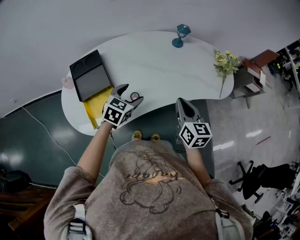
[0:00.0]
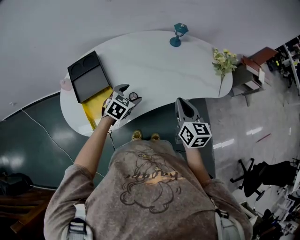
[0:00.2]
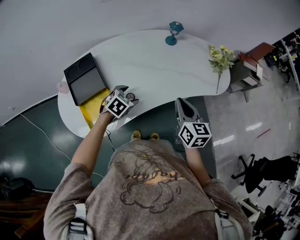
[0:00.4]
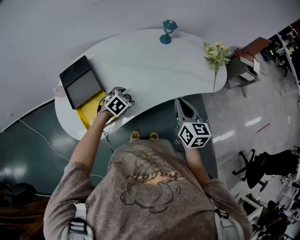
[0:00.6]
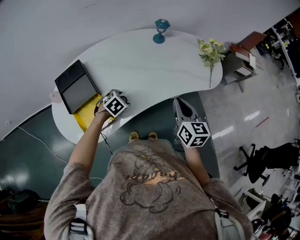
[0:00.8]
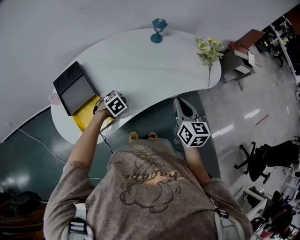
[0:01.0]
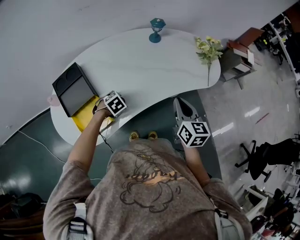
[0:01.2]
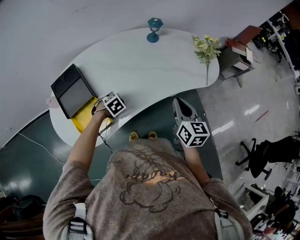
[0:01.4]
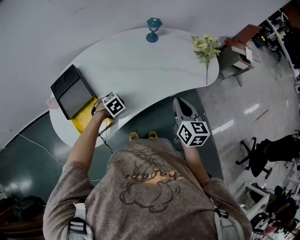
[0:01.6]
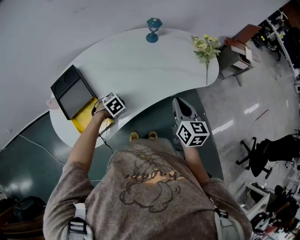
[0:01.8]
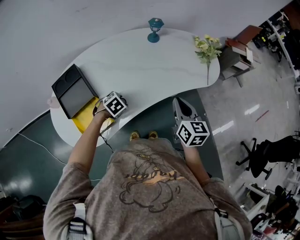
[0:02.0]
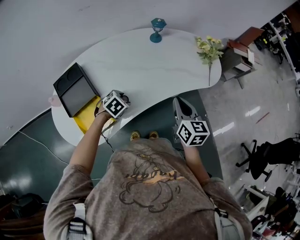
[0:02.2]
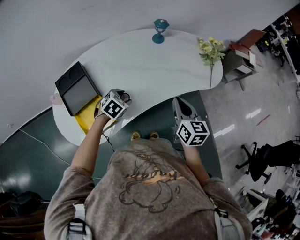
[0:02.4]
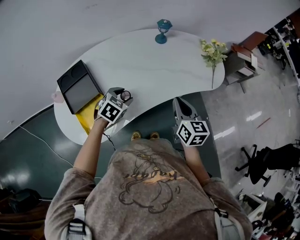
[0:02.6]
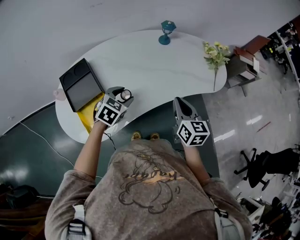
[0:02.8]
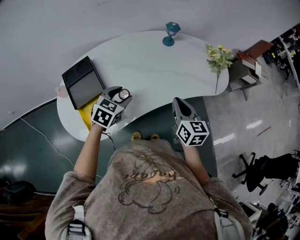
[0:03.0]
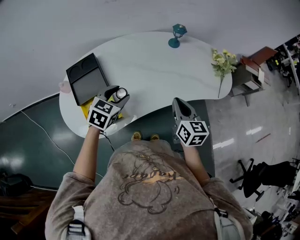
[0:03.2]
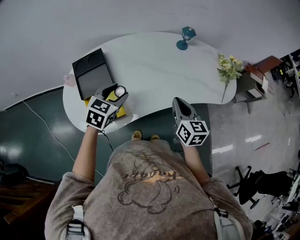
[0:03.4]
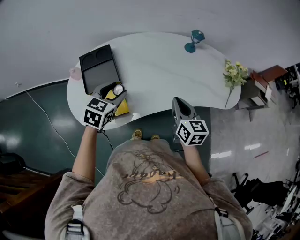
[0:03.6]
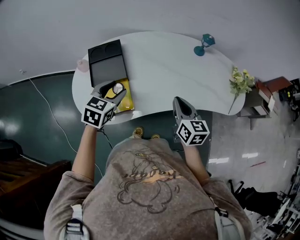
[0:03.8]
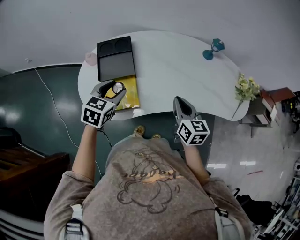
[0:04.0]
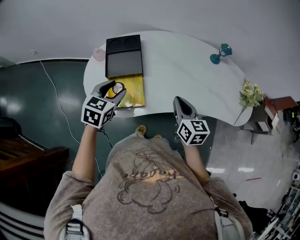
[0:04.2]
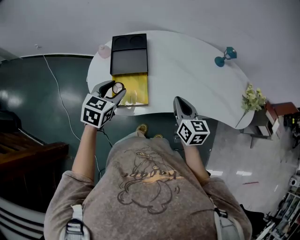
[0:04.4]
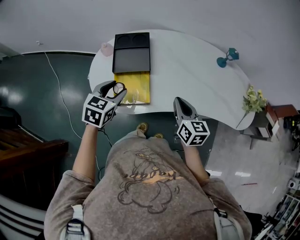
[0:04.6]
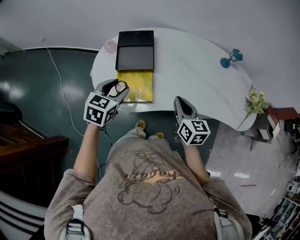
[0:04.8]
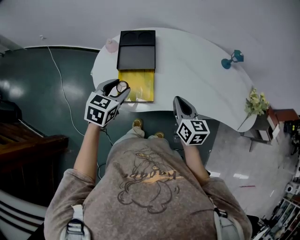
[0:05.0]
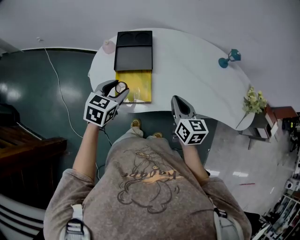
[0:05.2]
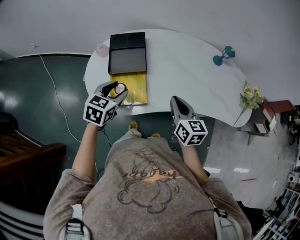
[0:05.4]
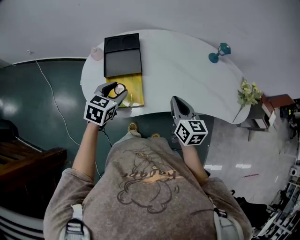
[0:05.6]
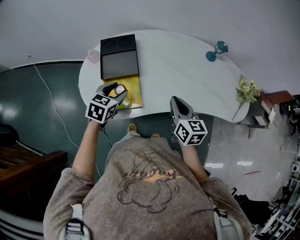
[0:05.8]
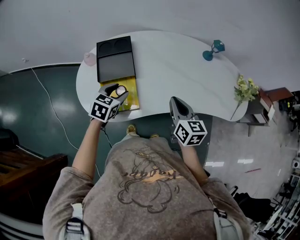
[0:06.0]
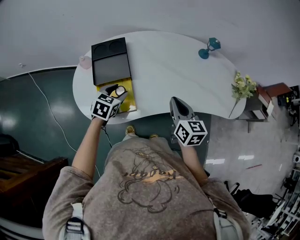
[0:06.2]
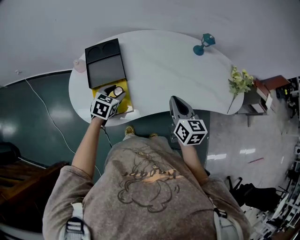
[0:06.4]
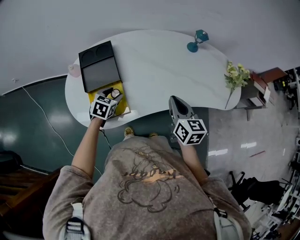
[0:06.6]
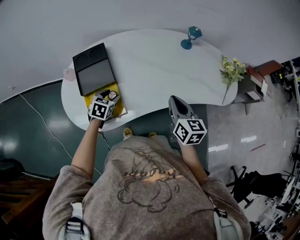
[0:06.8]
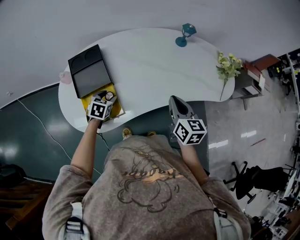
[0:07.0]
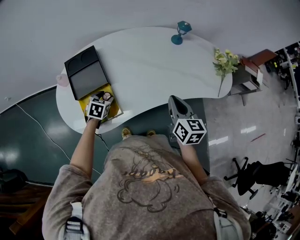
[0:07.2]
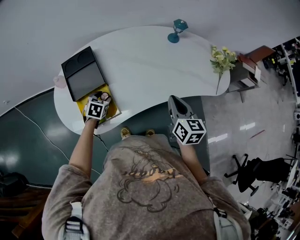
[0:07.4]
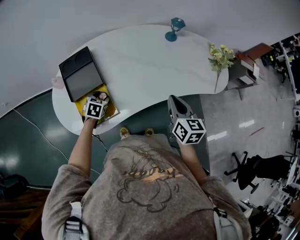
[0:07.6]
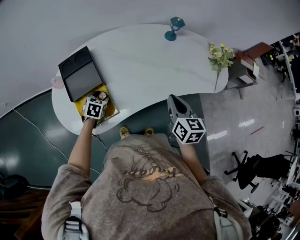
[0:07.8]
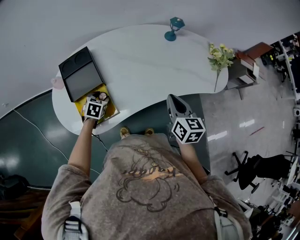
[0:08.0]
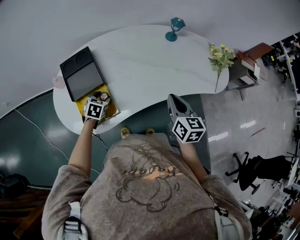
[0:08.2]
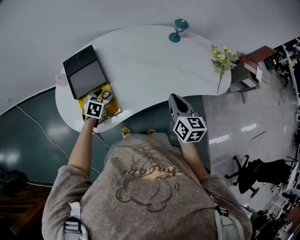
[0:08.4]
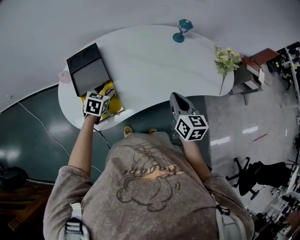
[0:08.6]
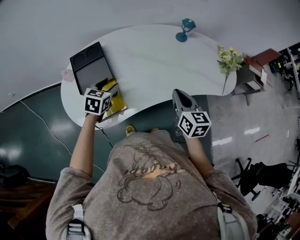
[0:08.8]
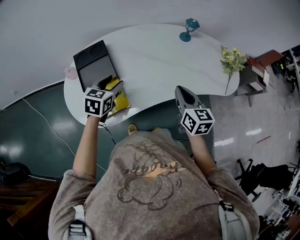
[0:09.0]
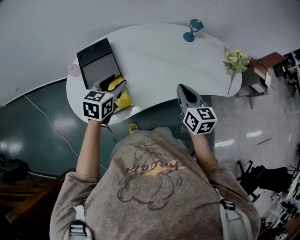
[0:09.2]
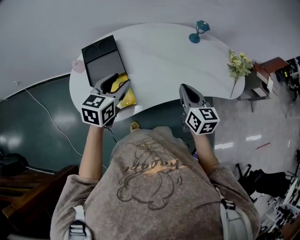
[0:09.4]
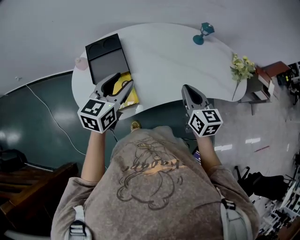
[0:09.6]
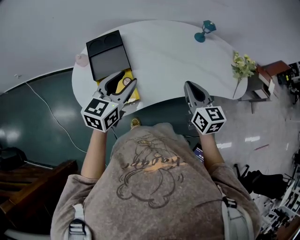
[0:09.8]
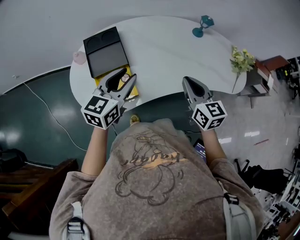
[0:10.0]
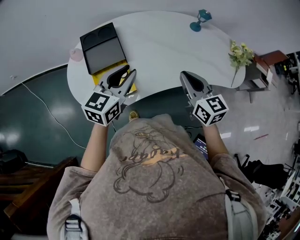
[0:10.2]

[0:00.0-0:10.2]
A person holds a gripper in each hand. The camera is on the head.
0:00.0 to 0:01.4: The right gripper moves roughly 5 cm. The left gripper travels downward by roughly 15 cm, and tips its fingers downward by roughly 40 degrees.
0:01.4 to 0:03.0: The left gripper goes approximately 15 cm upward, and tilts its fingers approximately 30 degrees upward; the right gripper changes place by about 5 cm.
0:03.0 to 0:04.4: The left gripper shifts by about 25 cm, and turns by some 30 degrees, while the right gripper changes place by about 15 cm, and changes its angle by some 30 degrees.
0:04.4 to 0:05.8: The left gripper shifts by about 5 cm.
0:05.8 to 0:07.2: The left gripper moves downward, approximately 15 cm. The right gripper heads to the right, covering about 10 cm.
0:07.2 to 0:08.8: The left gripper heads upward, covering some 10 cm.
0:08.8 to 0:10.2: The right gripper goes roughly 5 cm to the left; the left gripper is displaced upward and backward by some 15 cm, and swivels some 30 degrees.

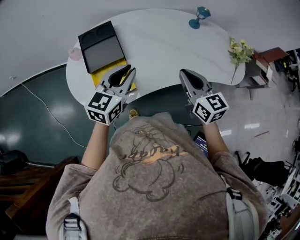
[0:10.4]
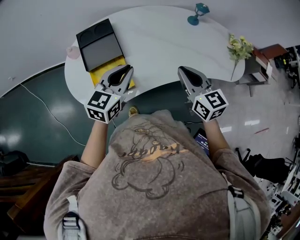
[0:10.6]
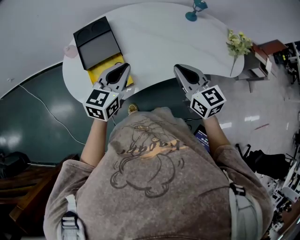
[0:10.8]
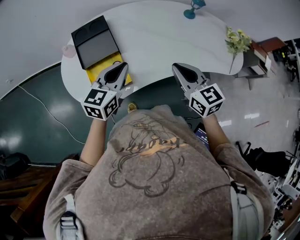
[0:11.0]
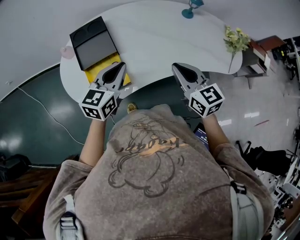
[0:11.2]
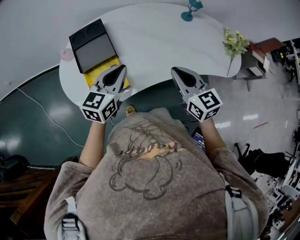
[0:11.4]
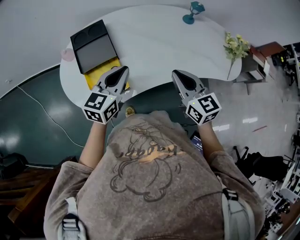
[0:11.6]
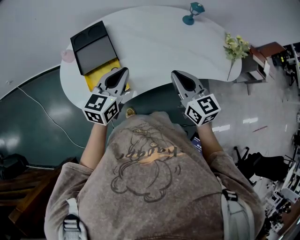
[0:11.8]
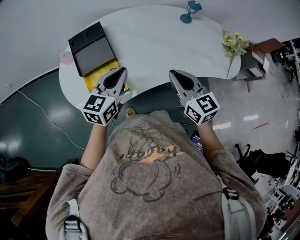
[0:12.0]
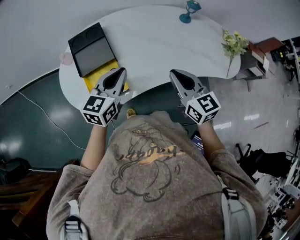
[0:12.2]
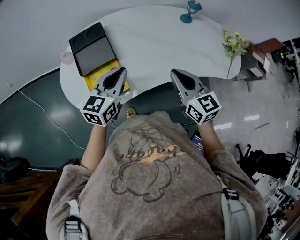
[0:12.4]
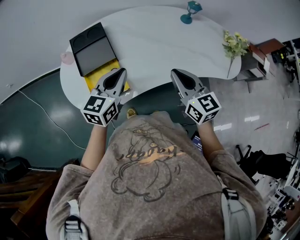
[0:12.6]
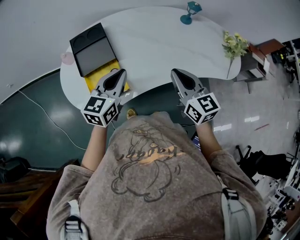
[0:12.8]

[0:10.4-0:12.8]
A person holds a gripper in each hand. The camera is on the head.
0:10.4 to 0:11.6: There are only small adjustments of the grippers.
0:11.6 to 0:12.8: The two grippers keep their place.

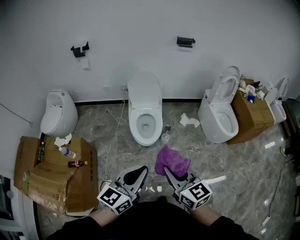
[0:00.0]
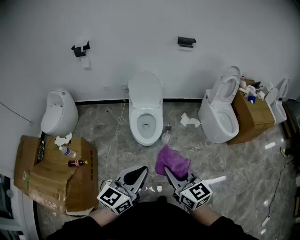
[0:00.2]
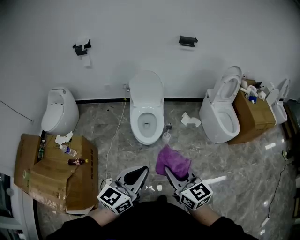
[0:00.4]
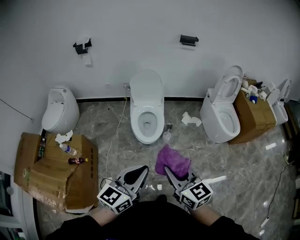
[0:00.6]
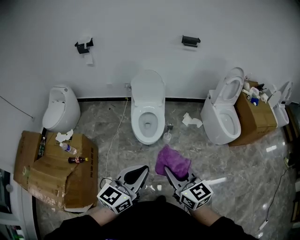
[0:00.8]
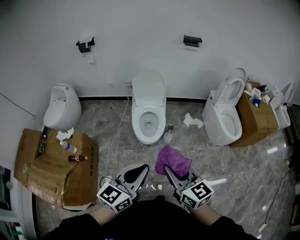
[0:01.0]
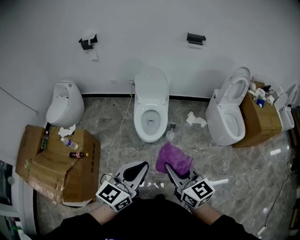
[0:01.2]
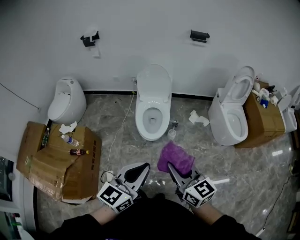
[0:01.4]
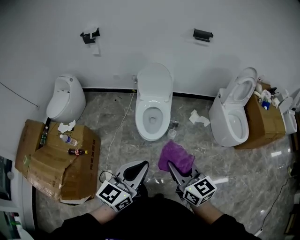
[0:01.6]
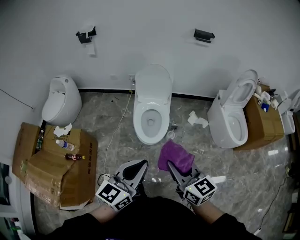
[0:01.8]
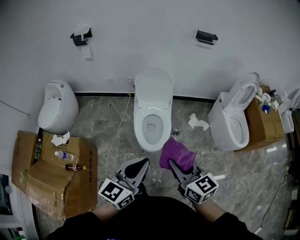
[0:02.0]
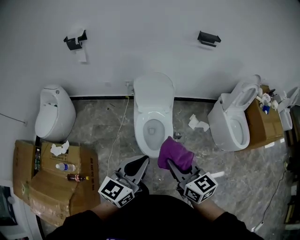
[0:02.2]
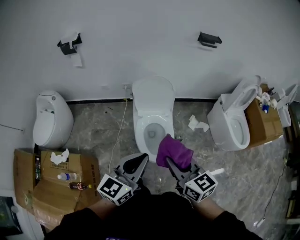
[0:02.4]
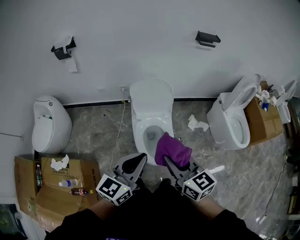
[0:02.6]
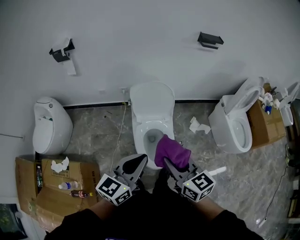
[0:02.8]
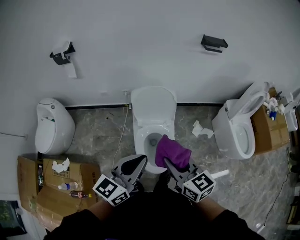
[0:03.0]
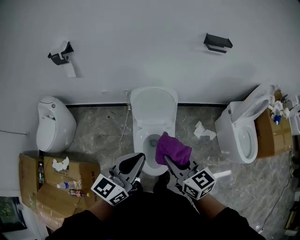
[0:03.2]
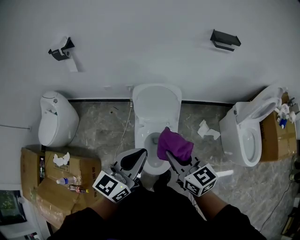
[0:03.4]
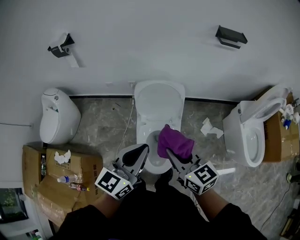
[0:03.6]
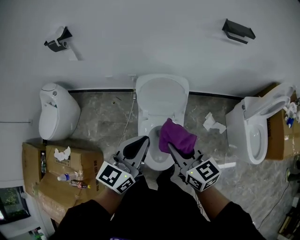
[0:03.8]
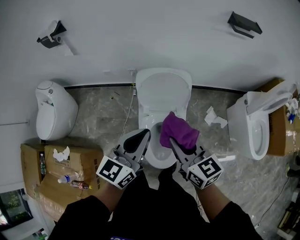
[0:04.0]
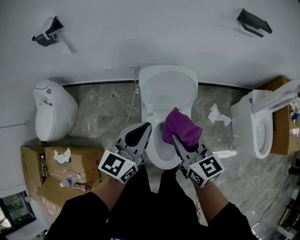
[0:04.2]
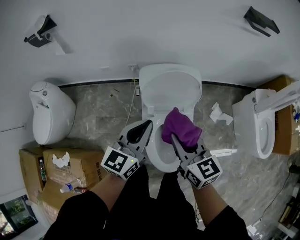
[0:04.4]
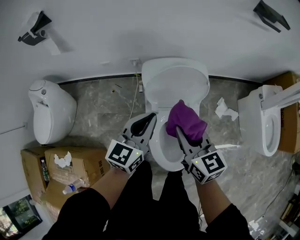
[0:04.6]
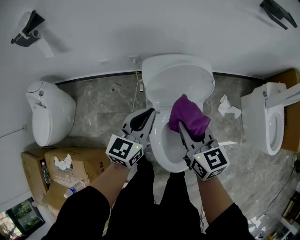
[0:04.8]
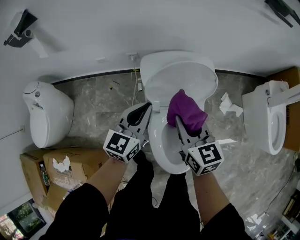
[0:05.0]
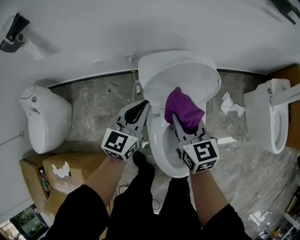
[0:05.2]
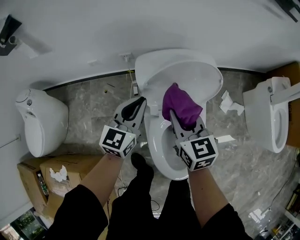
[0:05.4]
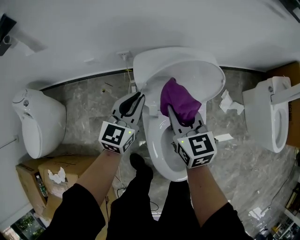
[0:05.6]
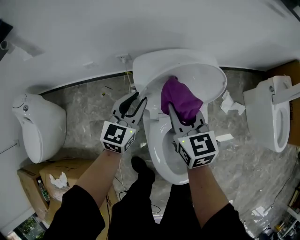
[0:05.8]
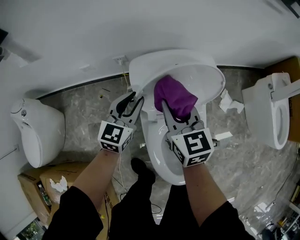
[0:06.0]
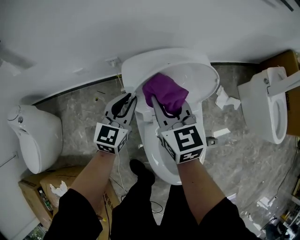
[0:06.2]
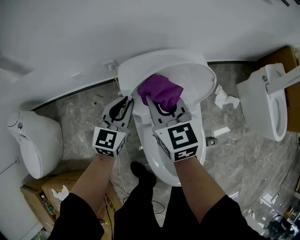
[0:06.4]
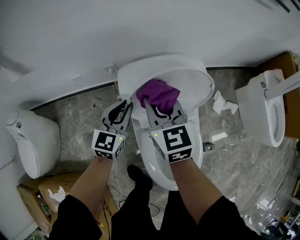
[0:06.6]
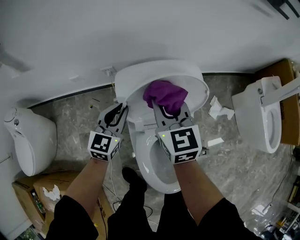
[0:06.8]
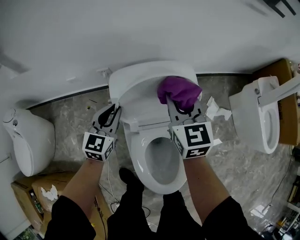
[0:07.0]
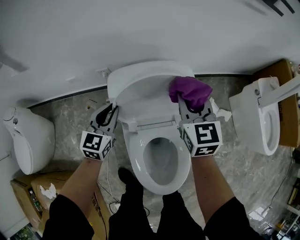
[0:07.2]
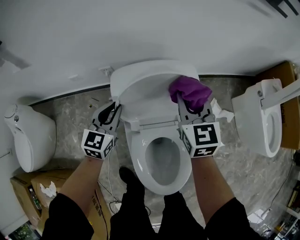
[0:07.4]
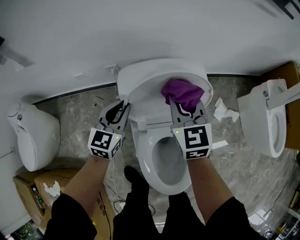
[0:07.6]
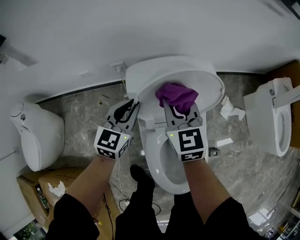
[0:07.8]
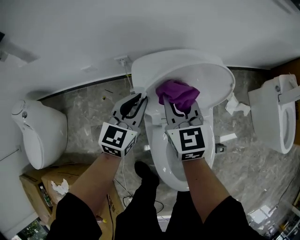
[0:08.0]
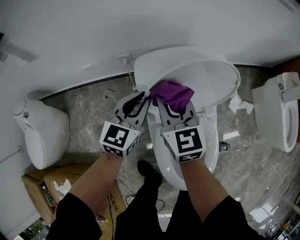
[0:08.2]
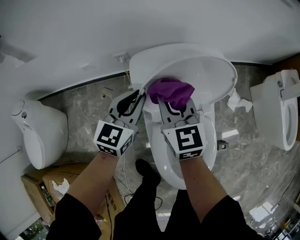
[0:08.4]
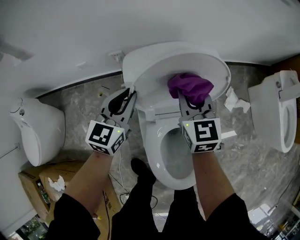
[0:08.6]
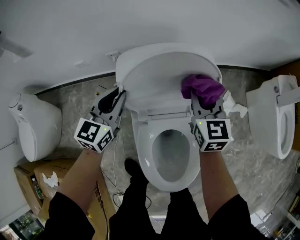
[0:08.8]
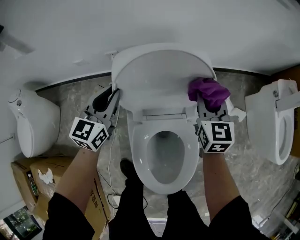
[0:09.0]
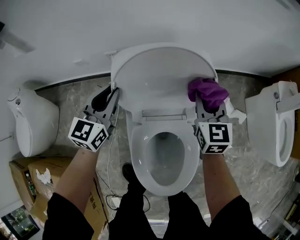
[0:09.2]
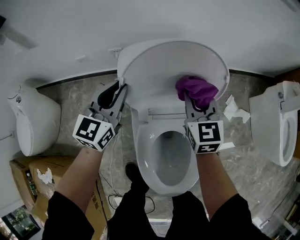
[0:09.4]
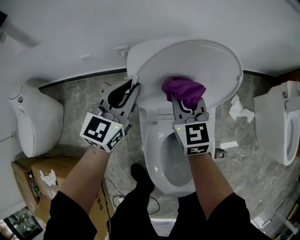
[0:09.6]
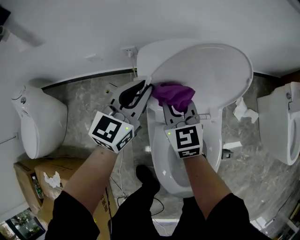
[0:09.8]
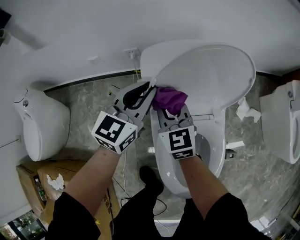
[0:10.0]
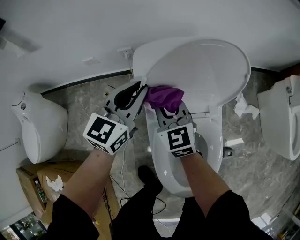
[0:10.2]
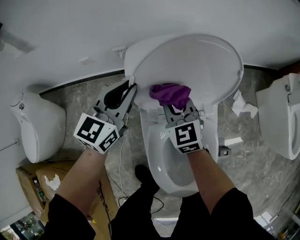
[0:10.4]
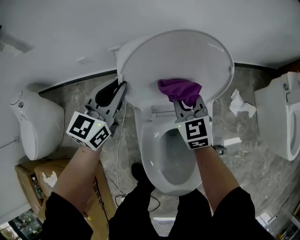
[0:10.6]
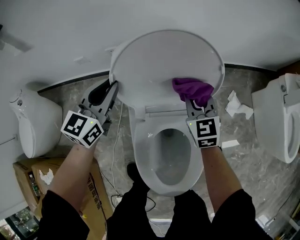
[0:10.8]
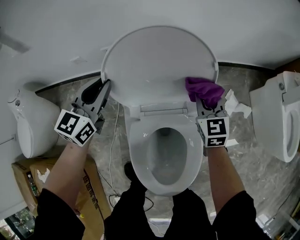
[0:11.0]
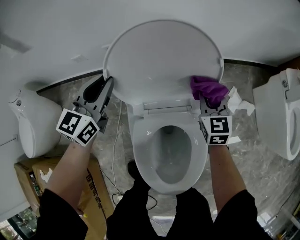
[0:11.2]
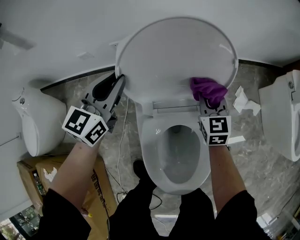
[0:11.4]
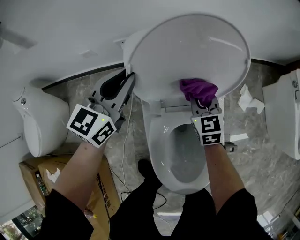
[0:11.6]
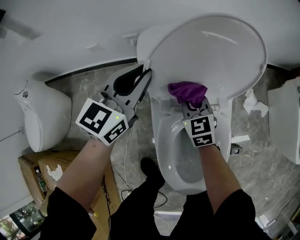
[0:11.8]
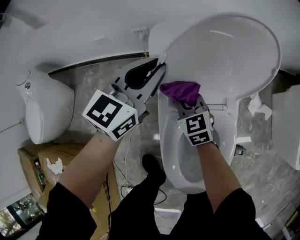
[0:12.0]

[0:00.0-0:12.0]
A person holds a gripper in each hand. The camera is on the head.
0:00.0 to 0:01.6: The right gripper shifts about 5 cm forward. The left gripper ends up approximately 5 cm from where it was.
0:01.6 to 0:03.0: Both grippers travel together forward, approximately 35 cm.
0:03.0 to 0:04.4: The grippers both shift forward and downward by approximately 25 cm.
0:04.4 to 0:06.0: The right gripper moves forward and downward, approximately 25 cm. Meanwhile the left gripper moves downward and forward, roughly 30 cm, and opens its fingers.
0:06.0 to 0:07.6: The right gripper is displaced to the right and forward by some 10 cm.
0:07.6 to 0:09.0: The right gripper goes some 15 cm to the right and downward.
0:09.0 to 0:10.4: The right gripper moves to the left, roughly 20 cm, and turns by about 20 degrees.
0:10.4 to 0:12.0: The right gripper heads downward, covering approximately 10 cm, and travels to the right and back again, about 20 cm each way.
